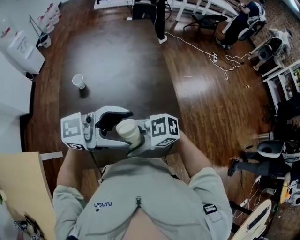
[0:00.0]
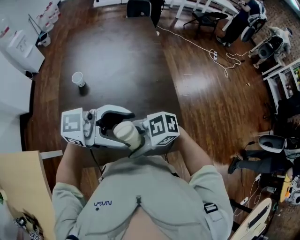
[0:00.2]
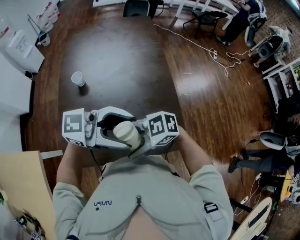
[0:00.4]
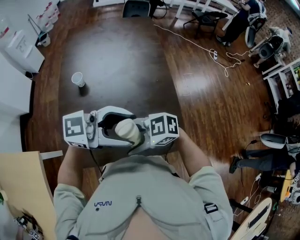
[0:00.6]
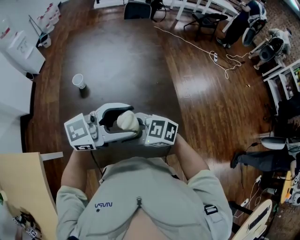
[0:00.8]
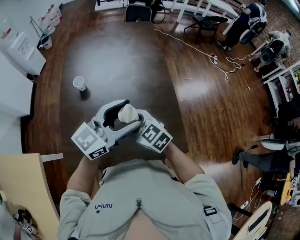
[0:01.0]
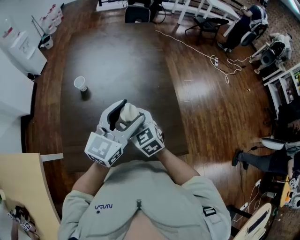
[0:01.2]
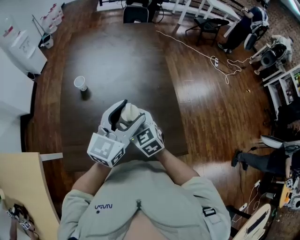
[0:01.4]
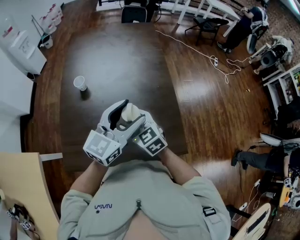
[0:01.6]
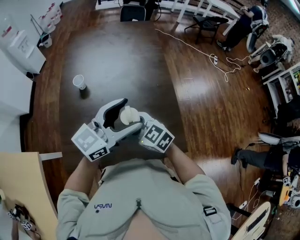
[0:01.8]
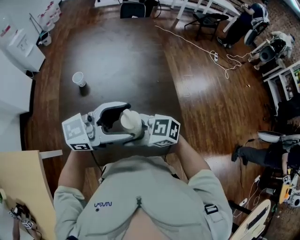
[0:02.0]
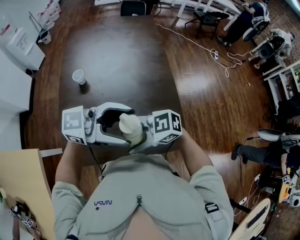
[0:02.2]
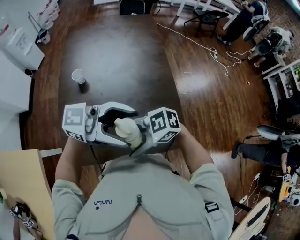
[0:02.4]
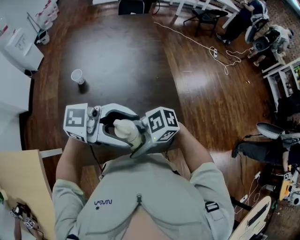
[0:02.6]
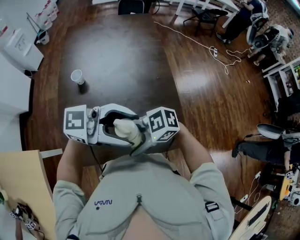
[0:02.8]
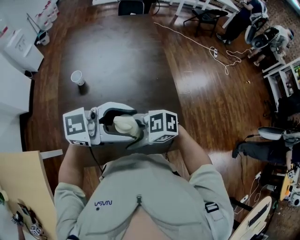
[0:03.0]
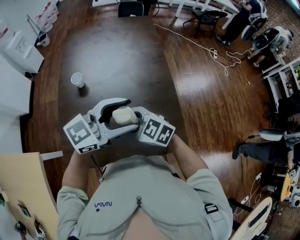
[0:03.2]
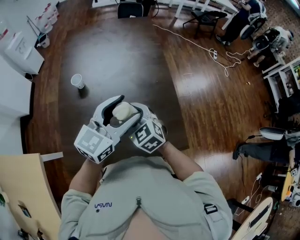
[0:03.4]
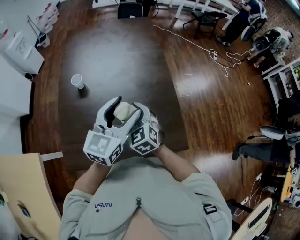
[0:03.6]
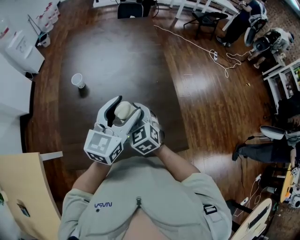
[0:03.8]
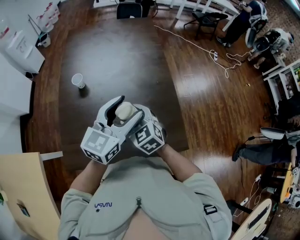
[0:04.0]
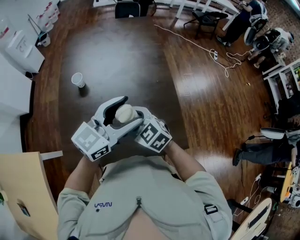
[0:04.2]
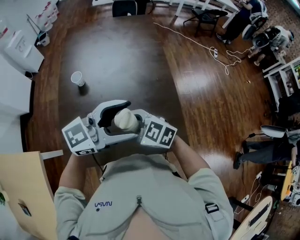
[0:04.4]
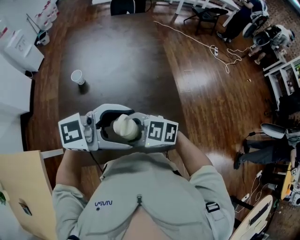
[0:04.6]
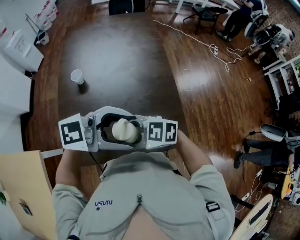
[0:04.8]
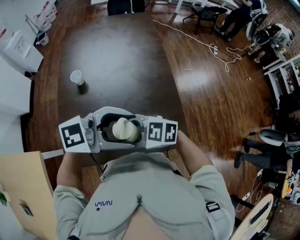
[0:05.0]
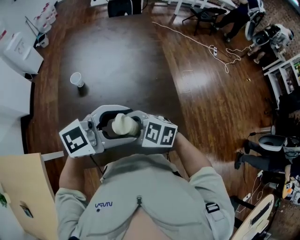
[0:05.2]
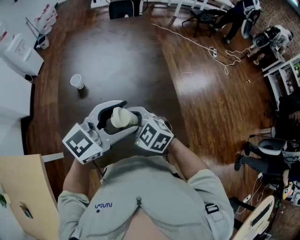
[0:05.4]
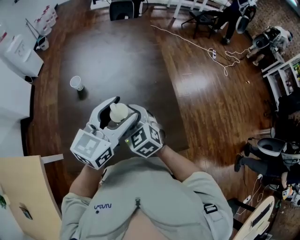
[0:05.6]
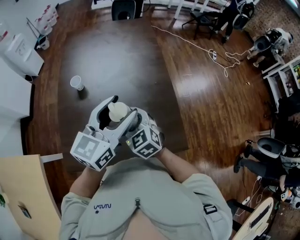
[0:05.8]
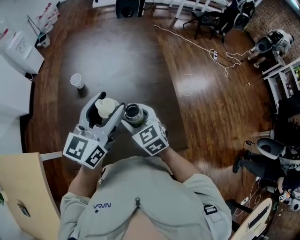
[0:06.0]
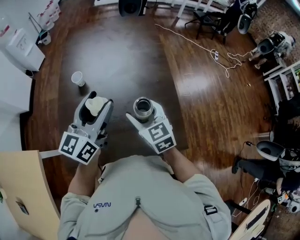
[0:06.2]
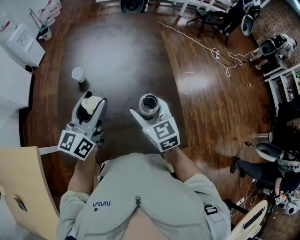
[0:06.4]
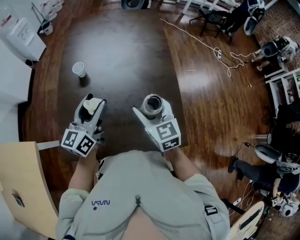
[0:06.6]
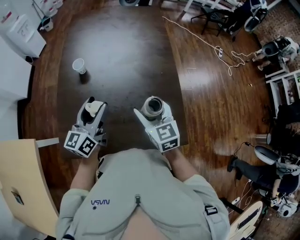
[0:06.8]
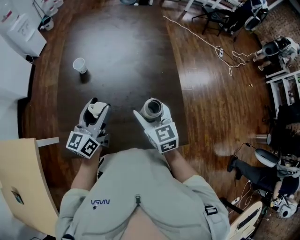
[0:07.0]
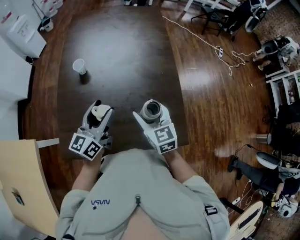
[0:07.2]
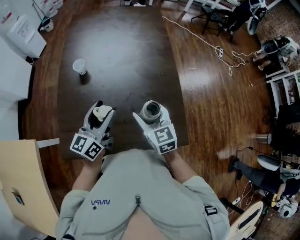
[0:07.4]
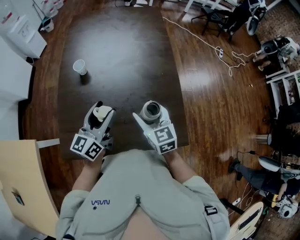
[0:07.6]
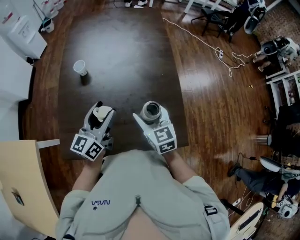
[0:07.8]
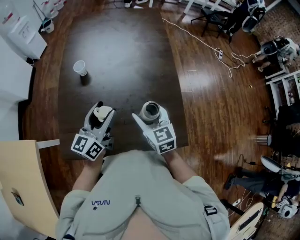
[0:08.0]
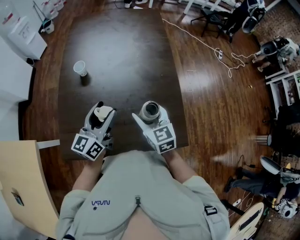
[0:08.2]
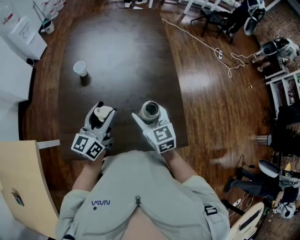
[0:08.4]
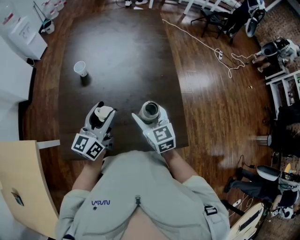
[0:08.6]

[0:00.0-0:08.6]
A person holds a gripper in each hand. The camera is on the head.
0:00.0 to 0:01.4: The left gripper ends up some 10 cm from where it was, and turns by some 60 degrees. Meanwhile the right gripper shifts by roughly 15 cm, and swivels approximately 60 degrees.
0:01.4 to 0:02.8: The left gripper changes place by some 10 cm, and rotates some 60 degrees, while the right gripper moves about 15 cm, and rotates approximately 70 degrees.
0:02.8 to 0:04.4: The left gripper rotates approximately 30 degrees, while the right gripper rotates about 40 degrees.
0:04.4 to 0:05.8: The right gripper ends up about 5 cm from where it was, and rotates roughly 30 degrees; the left gripper ends up approximately 5 cm from where it was, and rotates about 40 degrees.
0:05.8 to 0:07.2: The right gripper moves to the right, approximately 5 cm. Meanwhile the left gripper heads downward and to the left, covering approximately 15 cm, and rotates approximately 20 degrees.
0:07.2 to 0:08.6: Both grippers stay put.

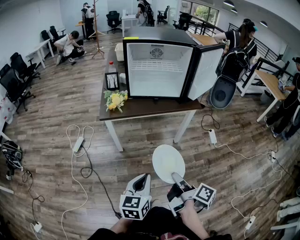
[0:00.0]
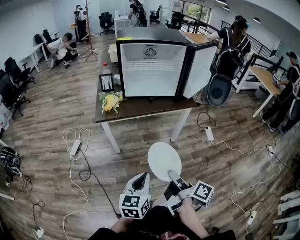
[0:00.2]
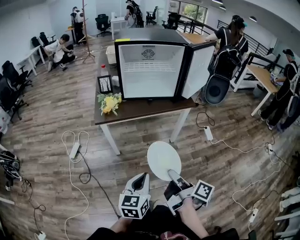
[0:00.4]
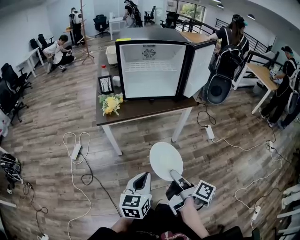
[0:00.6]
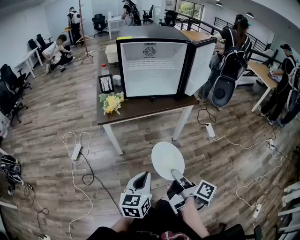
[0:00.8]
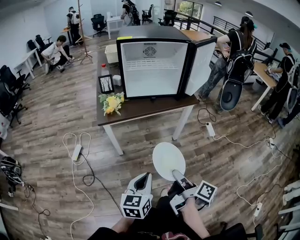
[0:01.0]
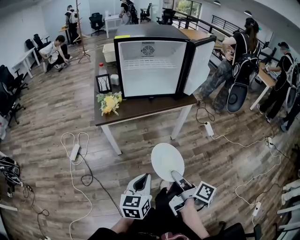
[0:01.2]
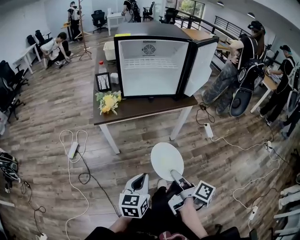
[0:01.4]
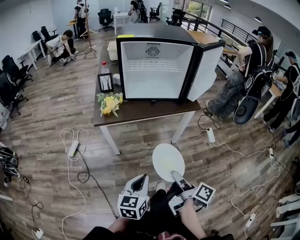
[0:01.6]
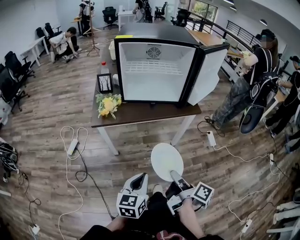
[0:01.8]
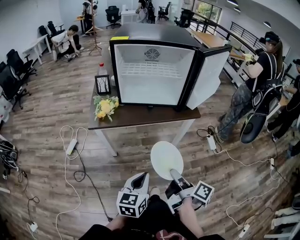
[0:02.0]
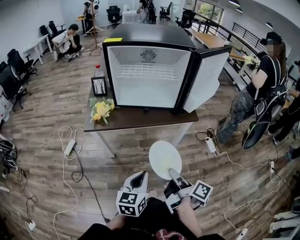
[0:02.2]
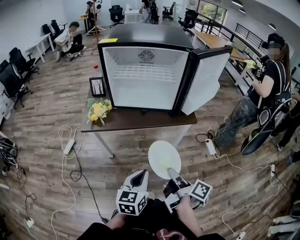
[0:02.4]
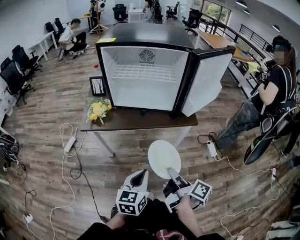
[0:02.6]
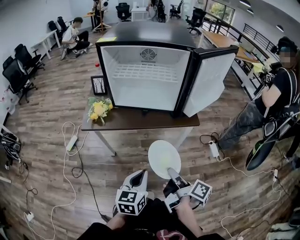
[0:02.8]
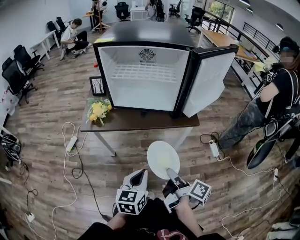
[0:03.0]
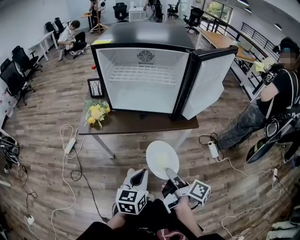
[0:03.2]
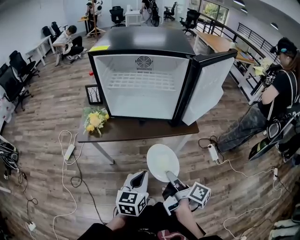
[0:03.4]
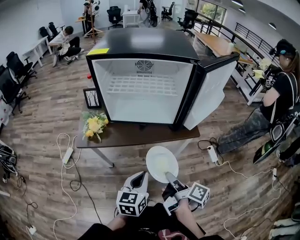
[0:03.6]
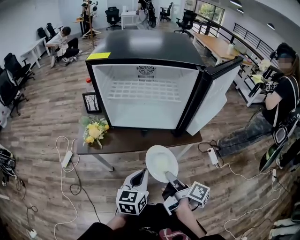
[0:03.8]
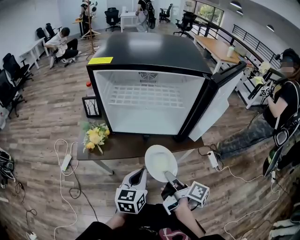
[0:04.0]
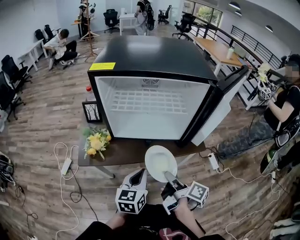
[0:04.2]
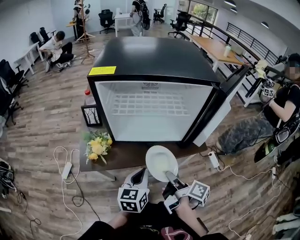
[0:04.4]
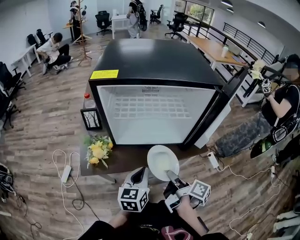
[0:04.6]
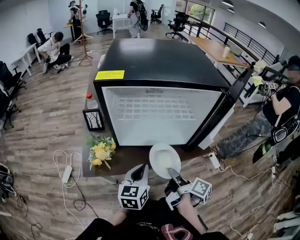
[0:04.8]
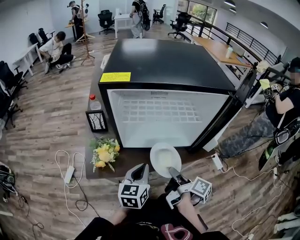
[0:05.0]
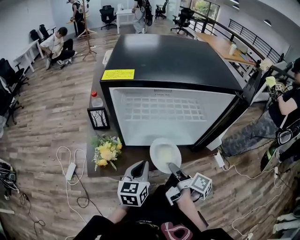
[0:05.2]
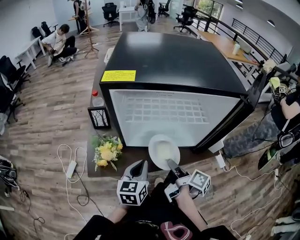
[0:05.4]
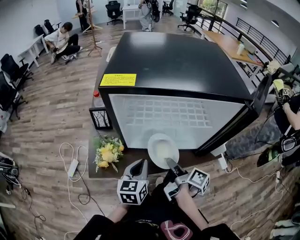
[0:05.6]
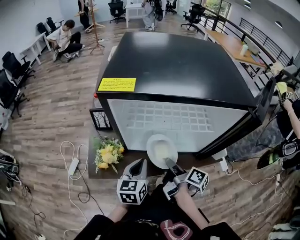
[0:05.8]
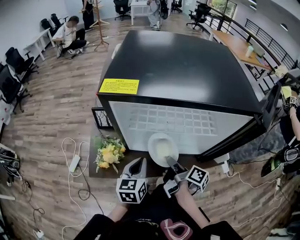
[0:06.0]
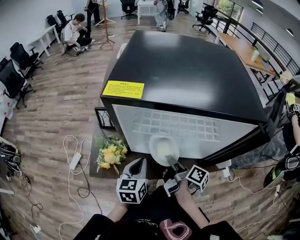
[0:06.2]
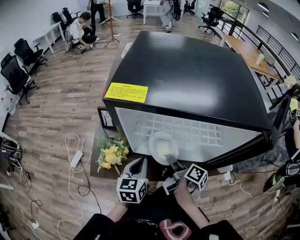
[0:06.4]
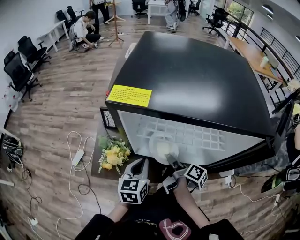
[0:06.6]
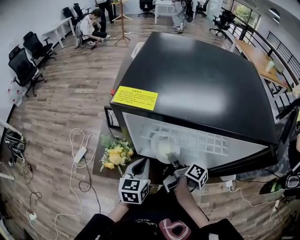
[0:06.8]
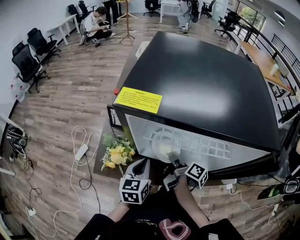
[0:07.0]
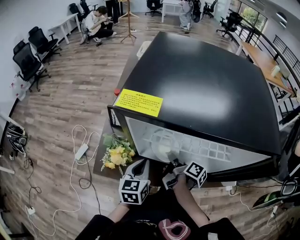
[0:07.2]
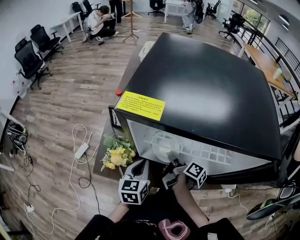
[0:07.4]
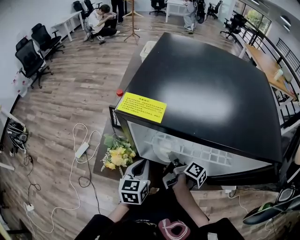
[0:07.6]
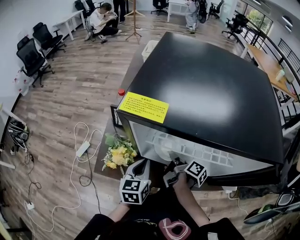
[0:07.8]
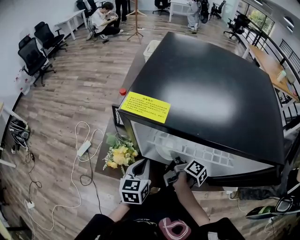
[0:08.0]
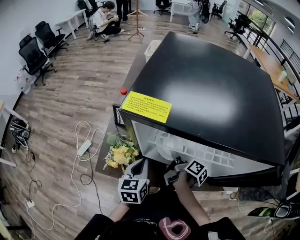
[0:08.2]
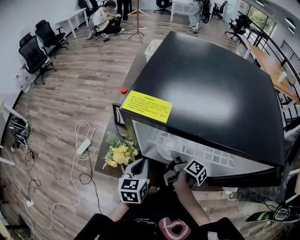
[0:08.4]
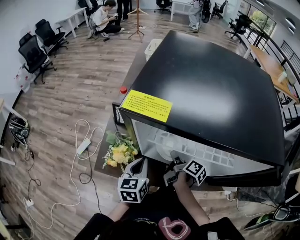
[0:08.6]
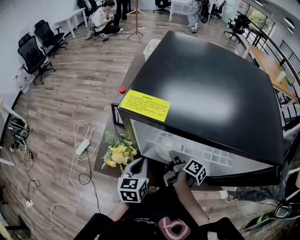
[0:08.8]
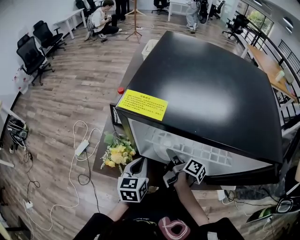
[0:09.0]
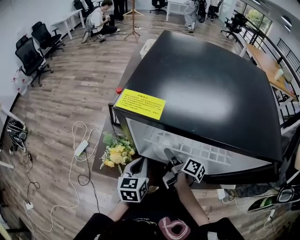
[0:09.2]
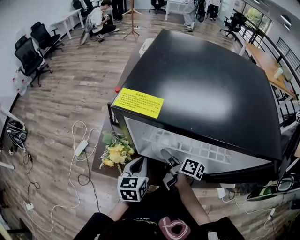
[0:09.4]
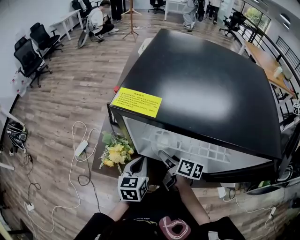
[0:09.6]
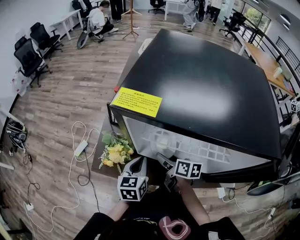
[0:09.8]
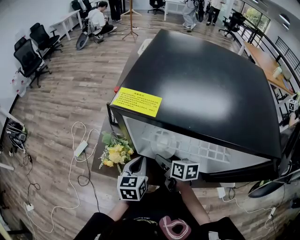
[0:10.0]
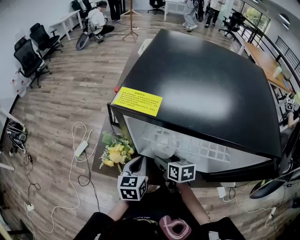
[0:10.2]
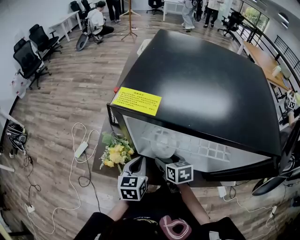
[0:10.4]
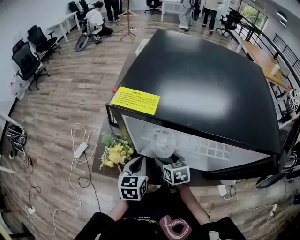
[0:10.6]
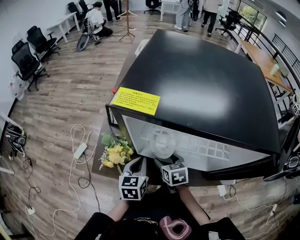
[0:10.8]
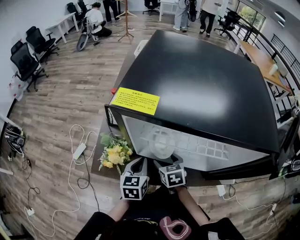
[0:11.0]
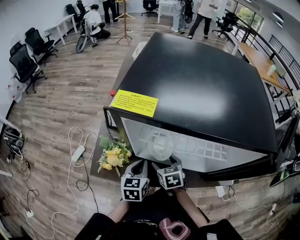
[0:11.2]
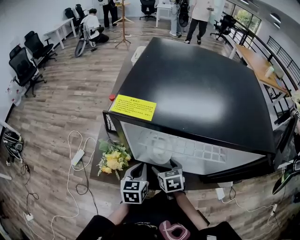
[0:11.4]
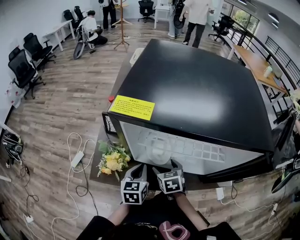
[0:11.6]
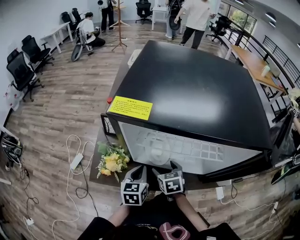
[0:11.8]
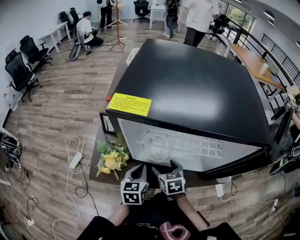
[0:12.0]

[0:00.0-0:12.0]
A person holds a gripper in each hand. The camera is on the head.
0:00.0 to 0:01.6: Both grippers move forward, approximately 5 cm.
0:01.6 to 0:03.0: Both grippers move forward and to the right, about 20 cm.
0:03.0 to 0:04.4: The right gripper heads forward and to the left, covering approximately 20 cm. The left gripper shifts approximately 20 cm forward.
0:04.4 to 0:06.0: The grippers both shift forward and to the left by roughly 15 cm.
0:06.0 to 0:07.6: The right gripper heads forward, covering about 10 cm; the left gripper shifts by about 5 cm.
0:07.6 to 0:09.0: The right gripper opens.
0:09.0 to 0:10.4: The right gripper twists about 60 degrees counterclockwise, seen from behind.
0:10.4 to 0:12.0: There are only small adjustments of the grippers.

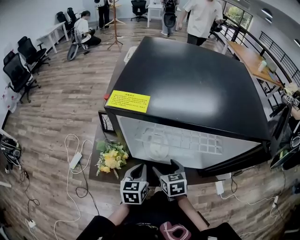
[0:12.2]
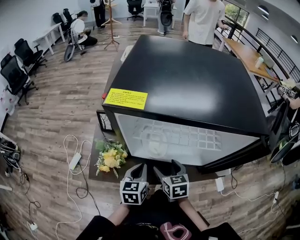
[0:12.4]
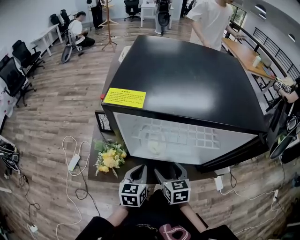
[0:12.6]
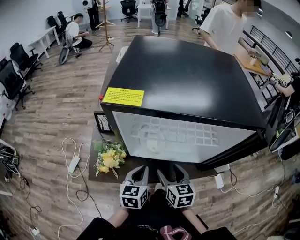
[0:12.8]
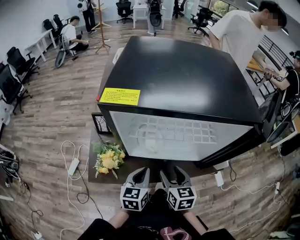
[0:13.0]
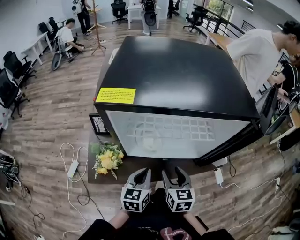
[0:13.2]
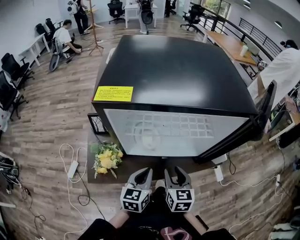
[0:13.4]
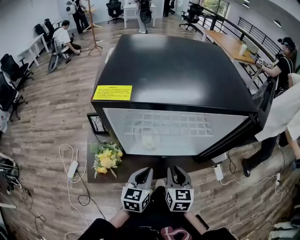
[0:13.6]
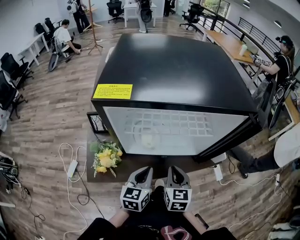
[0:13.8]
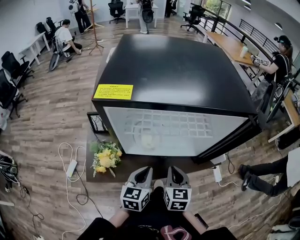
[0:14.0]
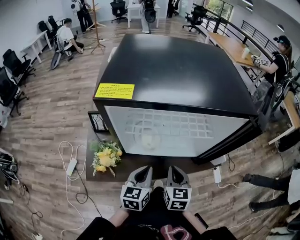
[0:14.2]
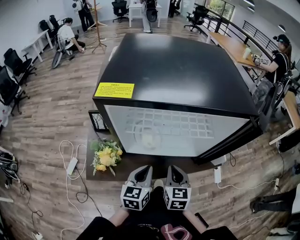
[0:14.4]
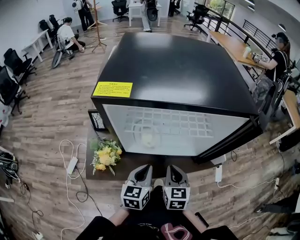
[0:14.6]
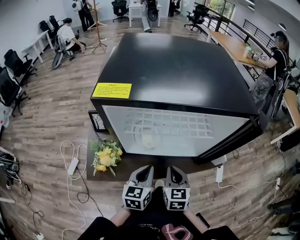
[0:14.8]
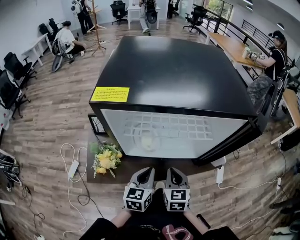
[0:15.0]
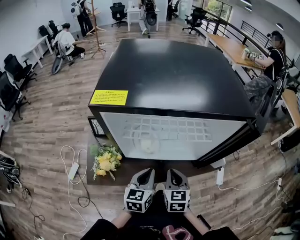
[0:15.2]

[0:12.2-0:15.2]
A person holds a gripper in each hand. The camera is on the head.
0:12.2 to 0:13.8: The left gripper travels to the right by approximately 5 cm. The right gripper shifts roughly 10 cm to the right, backward and upward, changes its angle by some 30 degrees, and closes.
0:13.8 to 0:15.2: The grippers stay close to where they were, moving slightly.
